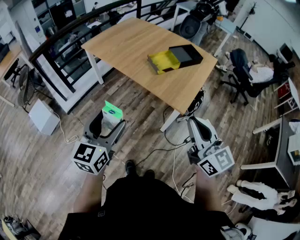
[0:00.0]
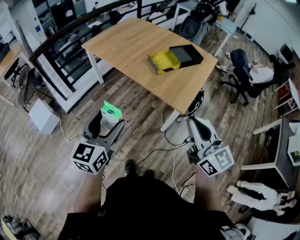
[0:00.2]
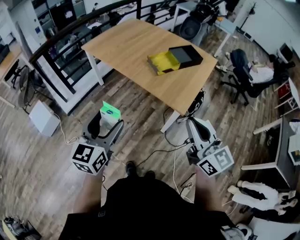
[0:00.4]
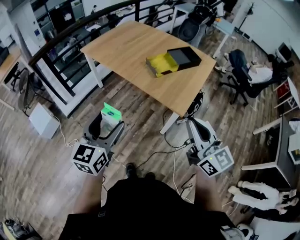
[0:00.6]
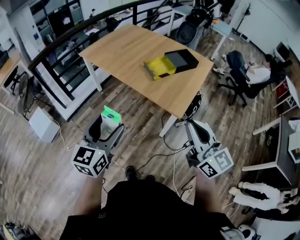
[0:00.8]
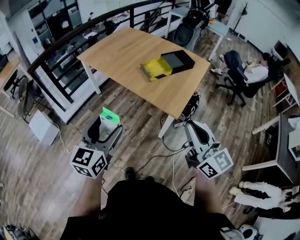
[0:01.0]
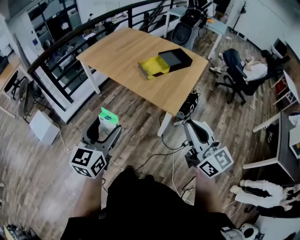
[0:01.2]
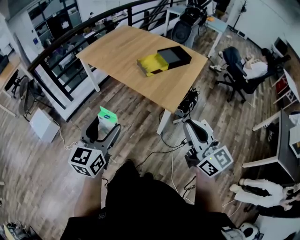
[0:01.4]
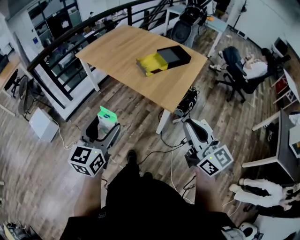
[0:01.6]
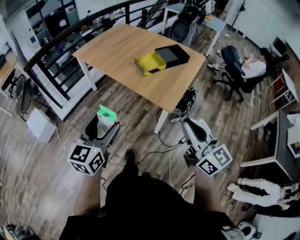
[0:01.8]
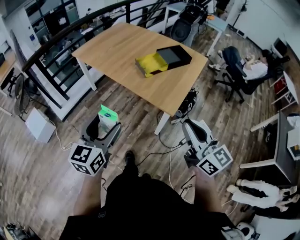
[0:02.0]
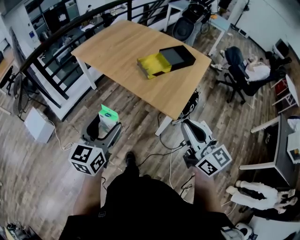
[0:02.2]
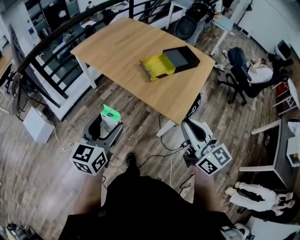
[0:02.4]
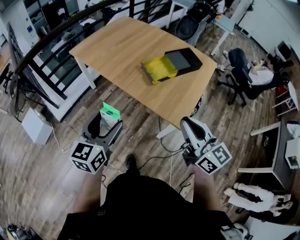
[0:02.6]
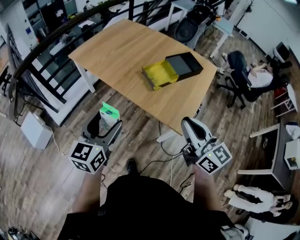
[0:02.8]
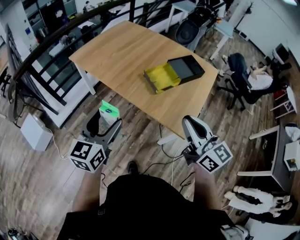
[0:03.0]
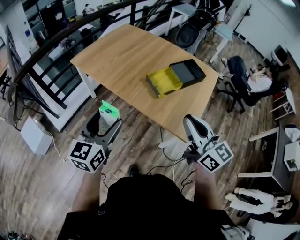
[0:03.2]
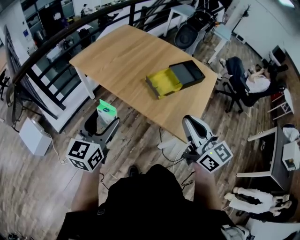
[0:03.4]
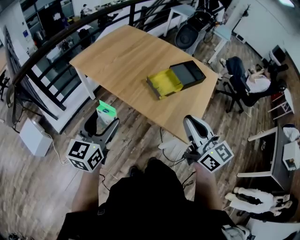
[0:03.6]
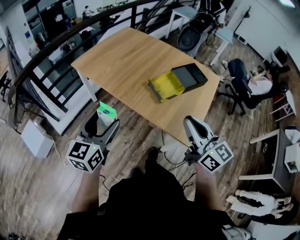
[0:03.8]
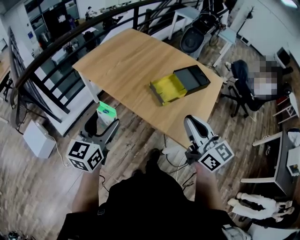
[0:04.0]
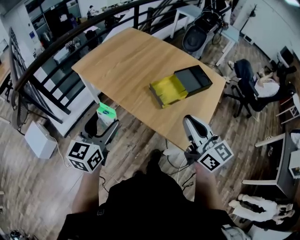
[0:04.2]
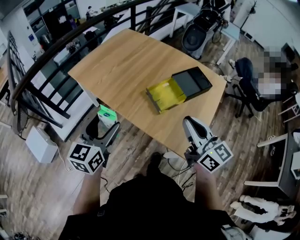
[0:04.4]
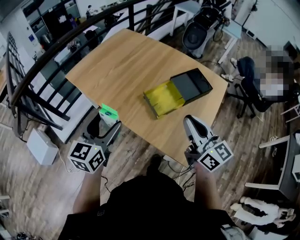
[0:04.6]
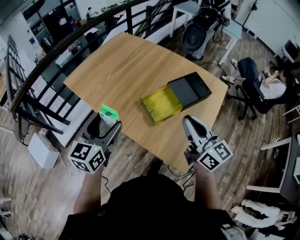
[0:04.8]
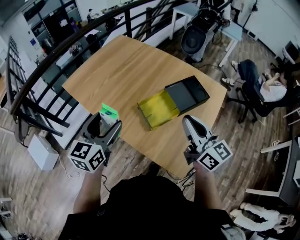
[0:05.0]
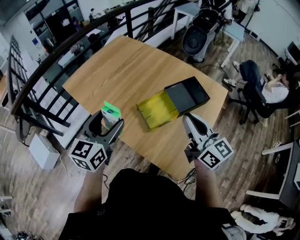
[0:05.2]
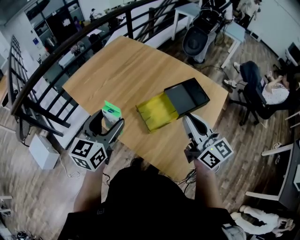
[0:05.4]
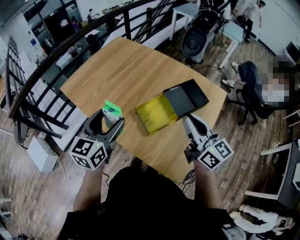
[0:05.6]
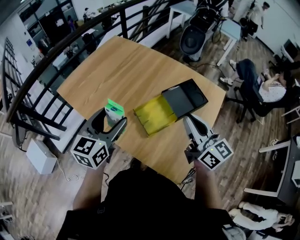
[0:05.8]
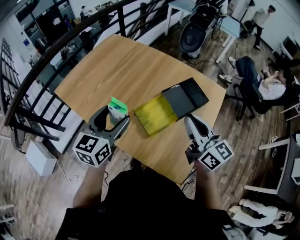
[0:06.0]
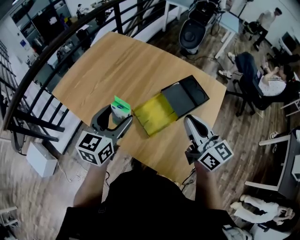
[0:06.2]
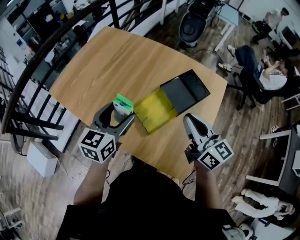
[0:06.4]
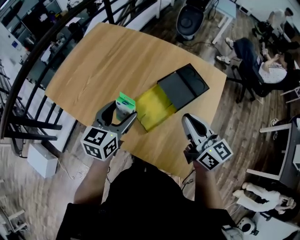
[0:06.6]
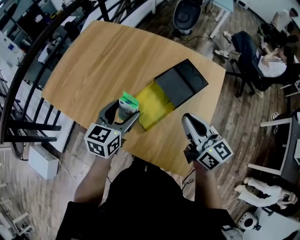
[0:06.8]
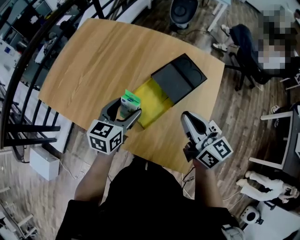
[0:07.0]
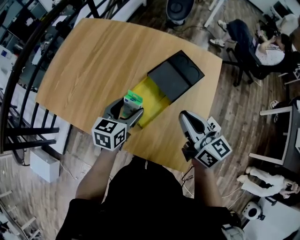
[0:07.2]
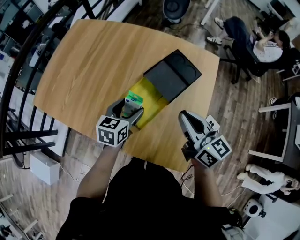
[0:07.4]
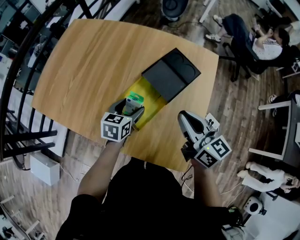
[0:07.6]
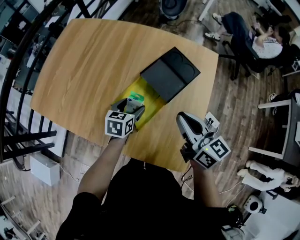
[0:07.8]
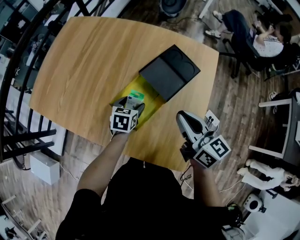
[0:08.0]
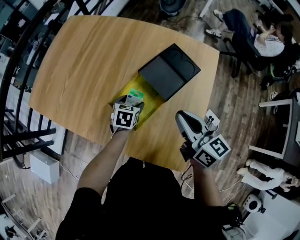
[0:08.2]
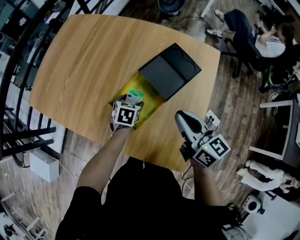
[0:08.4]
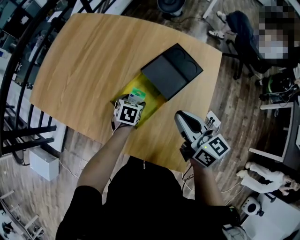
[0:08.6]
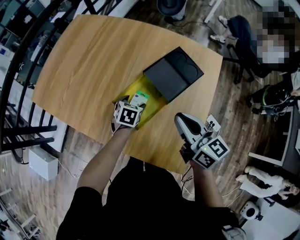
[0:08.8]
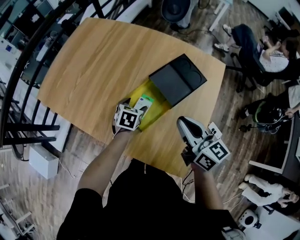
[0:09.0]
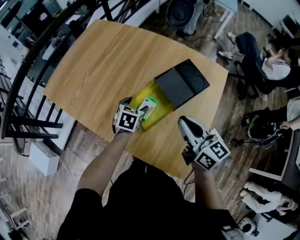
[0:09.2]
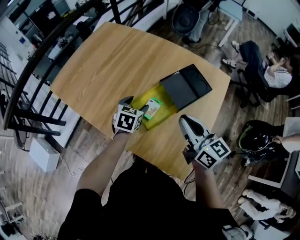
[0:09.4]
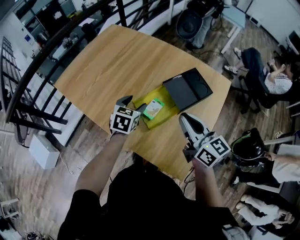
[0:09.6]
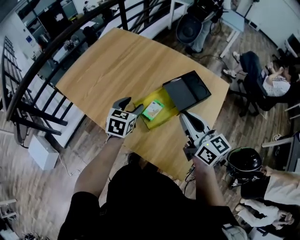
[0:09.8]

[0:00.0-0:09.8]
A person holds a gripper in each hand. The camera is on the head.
0.0 to 1.4 s: The right gripper travels to the right and backward by approximately 10 cm, while the left gripper moves approximately 5 cm.
1.4 to 2.8 s: The two grippers go approximately 20 cm forward.
2.8 to 4.2 s: Both grippers travel together forward, approximately 10 cm.
4.2 to 5.6 s: The grippers both shift forward and to the right by some 25 cm.
5.6 to 7.0 s: The left gripper is displaced downward, forward and to the right by about 20 cm, and rotates approximately 20 degrees. Meanwhile the right gripper heads downward, covering about 10 cm.
7.0 to 8.4 s: The left gripper shifts roughly 20 cm downward, and tips its fingers downward by some 30 degrees, while the right gripper ends up some 5 cm from where it was.
8.4 to 9.8 s: The right gripper goes approximately 10 cm upward and to the left, while the left gripper is displaced upward and to the left by some 20 cm, and swivels approximately 20 degrees.

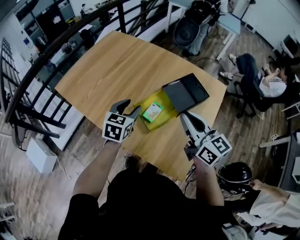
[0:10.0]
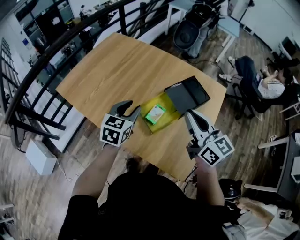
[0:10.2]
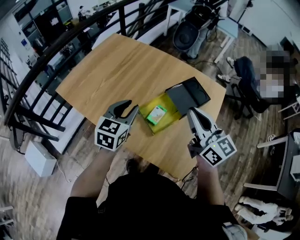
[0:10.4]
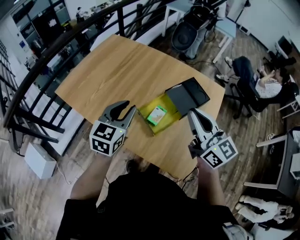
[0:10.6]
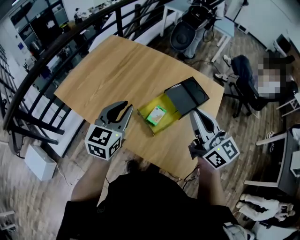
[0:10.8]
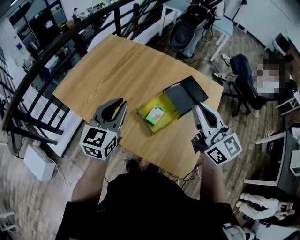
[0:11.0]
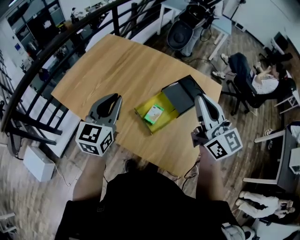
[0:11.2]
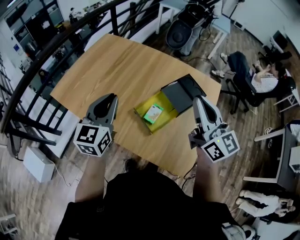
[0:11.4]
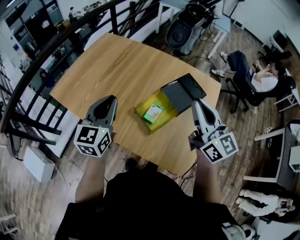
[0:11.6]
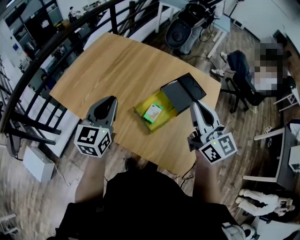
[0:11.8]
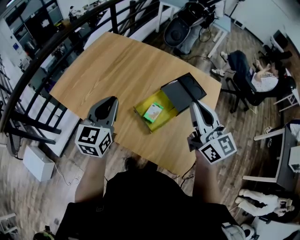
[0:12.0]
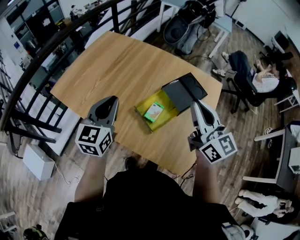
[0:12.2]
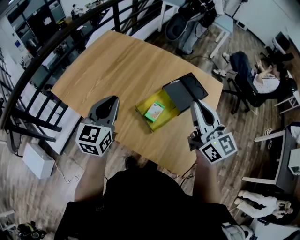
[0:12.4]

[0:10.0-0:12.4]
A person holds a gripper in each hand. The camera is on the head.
10.0 to 11.2 s: The left gripper shifts roughly 15 cm upward and to the left, swivels some 20 degrees, and closes. Meanwhile the right gripper travels upward by roughly 10 cm.
11.2 to 12.4 s: The grippers move only a little.

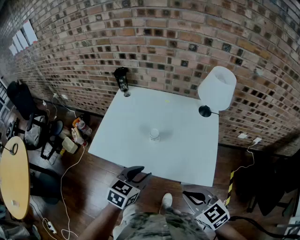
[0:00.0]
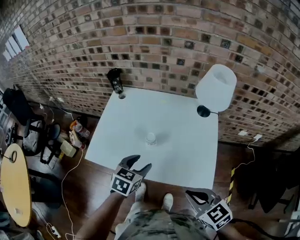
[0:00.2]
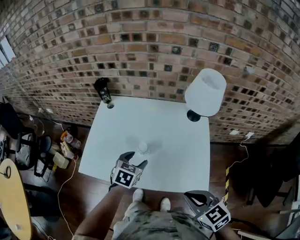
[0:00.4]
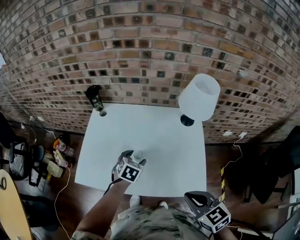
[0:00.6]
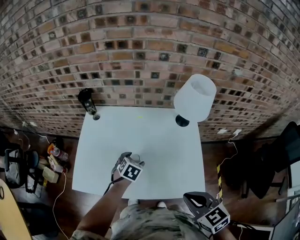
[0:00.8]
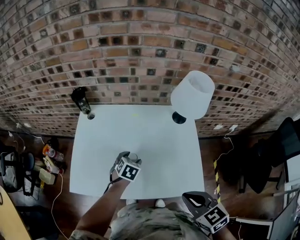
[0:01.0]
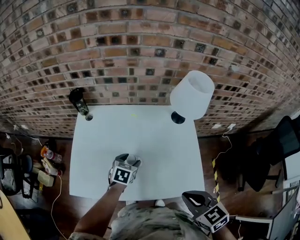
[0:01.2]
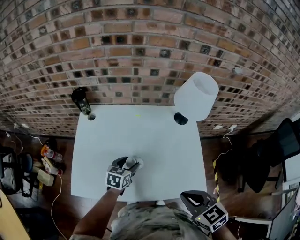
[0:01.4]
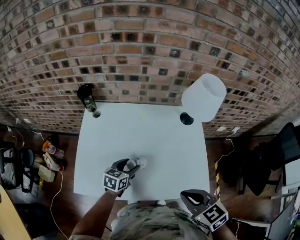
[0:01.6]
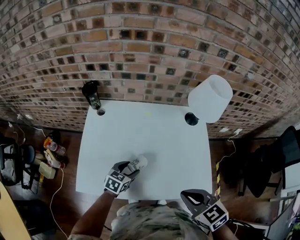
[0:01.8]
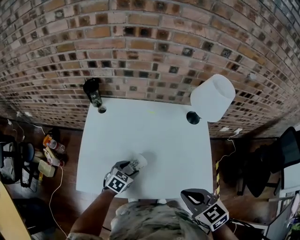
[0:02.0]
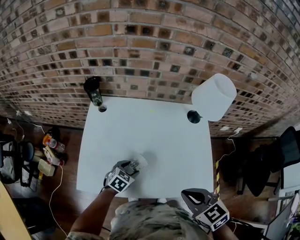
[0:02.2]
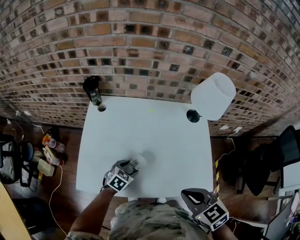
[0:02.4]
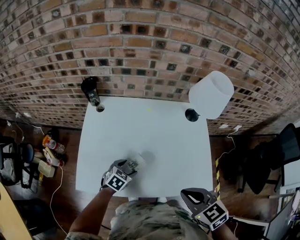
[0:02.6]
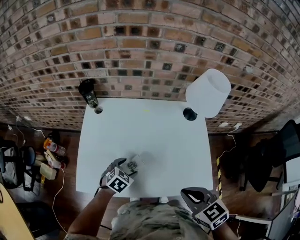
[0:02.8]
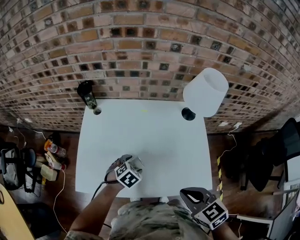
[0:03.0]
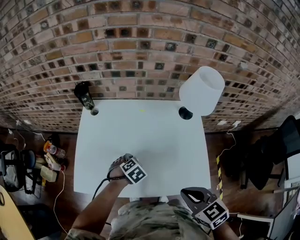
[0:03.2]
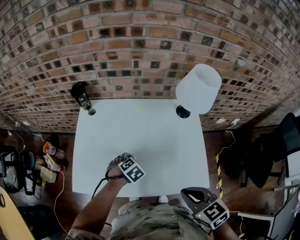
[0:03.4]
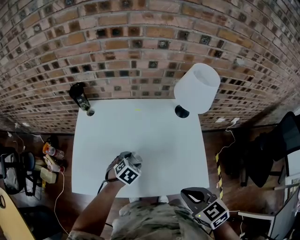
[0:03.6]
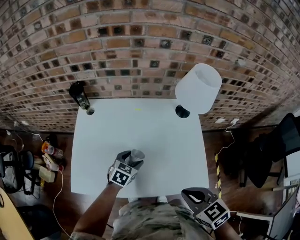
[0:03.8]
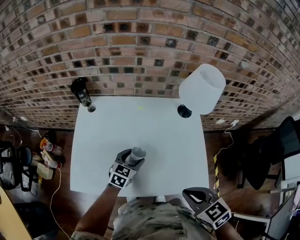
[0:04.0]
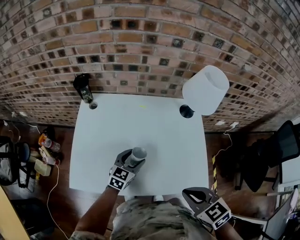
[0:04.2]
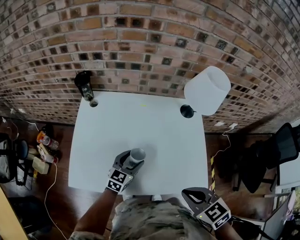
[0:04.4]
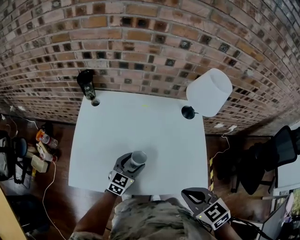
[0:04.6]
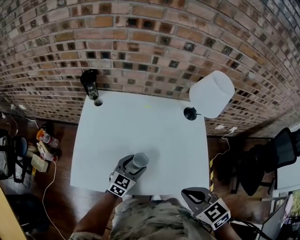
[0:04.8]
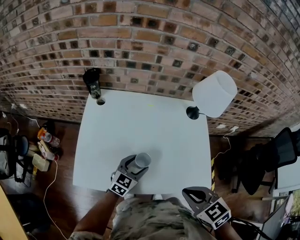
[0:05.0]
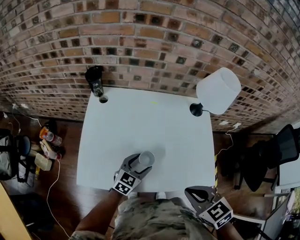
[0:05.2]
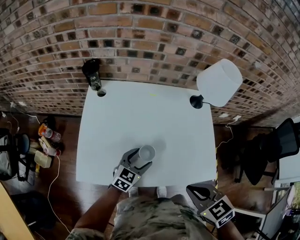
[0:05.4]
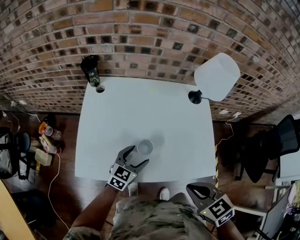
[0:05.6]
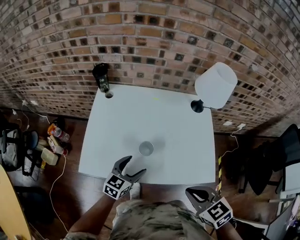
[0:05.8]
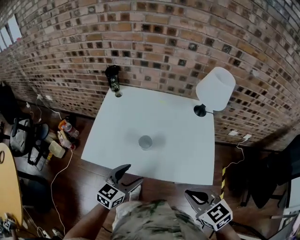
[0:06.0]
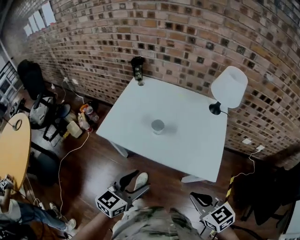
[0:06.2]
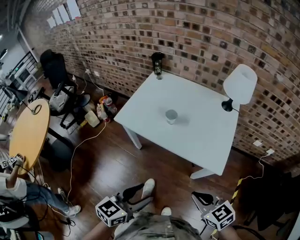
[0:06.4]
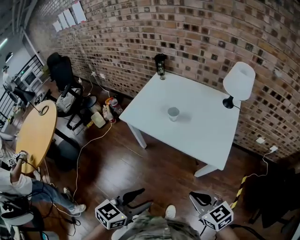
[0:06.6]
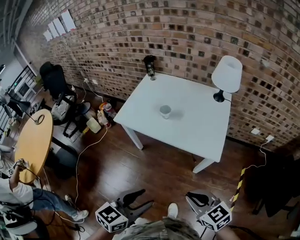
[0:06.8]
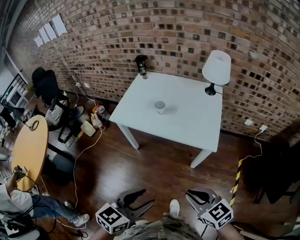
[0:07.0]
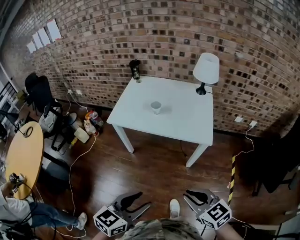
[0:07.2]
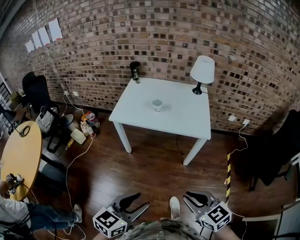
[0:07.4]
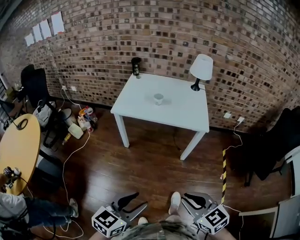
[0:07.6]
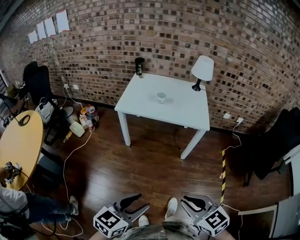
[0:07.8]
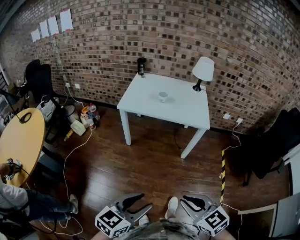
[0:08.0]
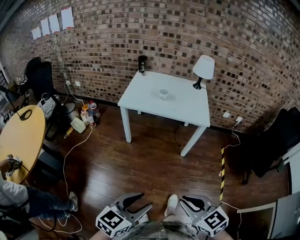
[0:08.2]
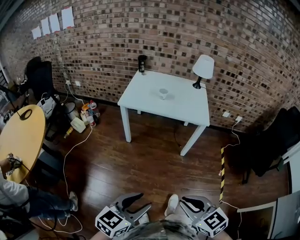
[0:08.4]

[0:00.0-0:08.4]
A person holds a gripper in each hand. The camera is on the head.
0.0 to 1.4 s: The right gripper shifts some 10 cm forward, and swivels some 20 degrees, while the left gripper goes some 25 cm forward and downward, and opens up.
1.4 to 2.8 s: The left gripper heads backward and to the left, covering roughly 5 cm, and changes its angle by approximately 30 degrees.
2.8 to 4.2 s: The left gripper shifts by some 10 cm, and swivels some 30 degrees.
4.2 to 5.6 s: The left gripper shifts about 5 cm backward, while the right gripper moves approximately 5 cm.
5.6 to 7.0 s: The right gripper ends up about 35 cm from where it was, and swivels some 30 degrees. Meanwhile the left gripper moves about 60 cm, and closes its fingers.
7.0 to 8.4 s: Both grippers travel together backward and to the left, approximately 35 cm.

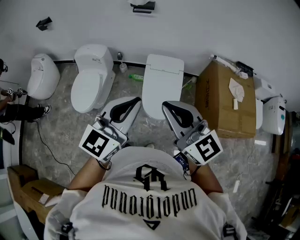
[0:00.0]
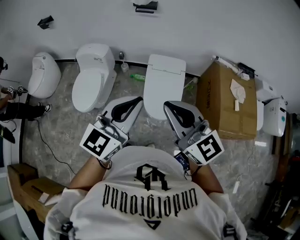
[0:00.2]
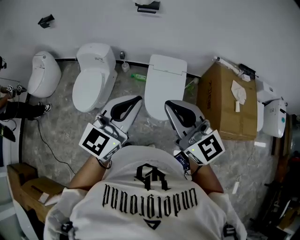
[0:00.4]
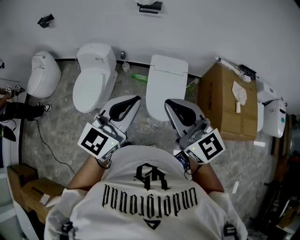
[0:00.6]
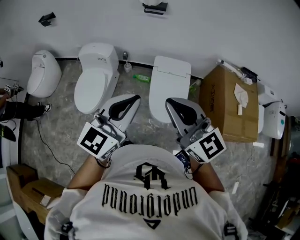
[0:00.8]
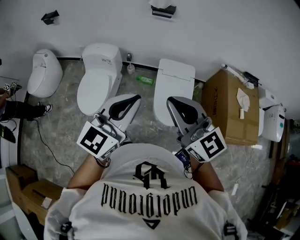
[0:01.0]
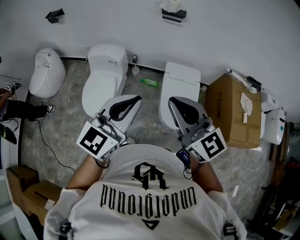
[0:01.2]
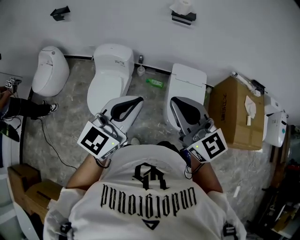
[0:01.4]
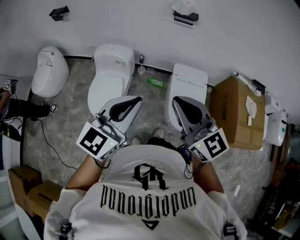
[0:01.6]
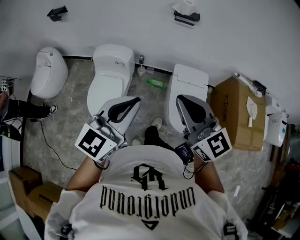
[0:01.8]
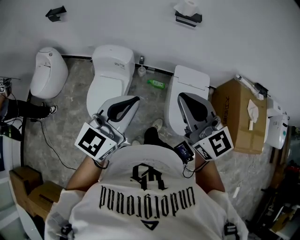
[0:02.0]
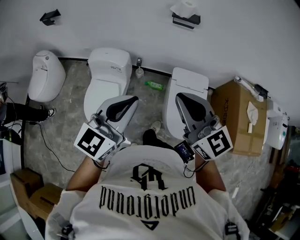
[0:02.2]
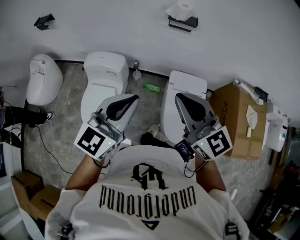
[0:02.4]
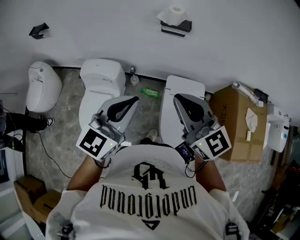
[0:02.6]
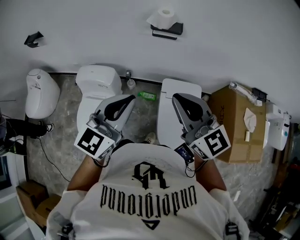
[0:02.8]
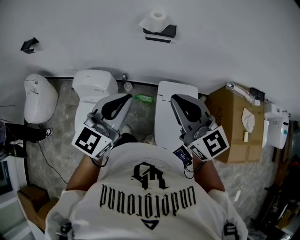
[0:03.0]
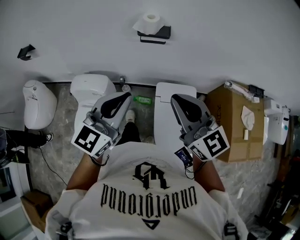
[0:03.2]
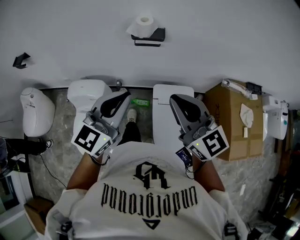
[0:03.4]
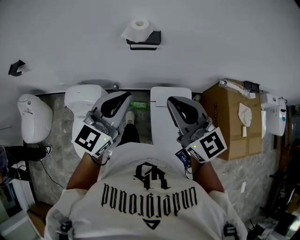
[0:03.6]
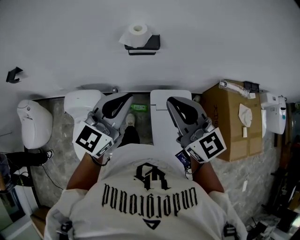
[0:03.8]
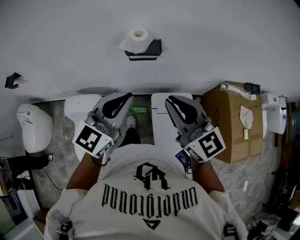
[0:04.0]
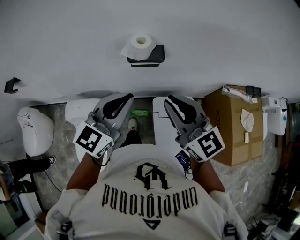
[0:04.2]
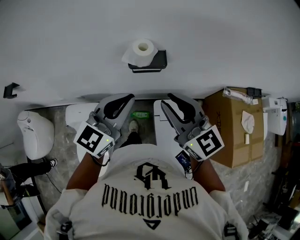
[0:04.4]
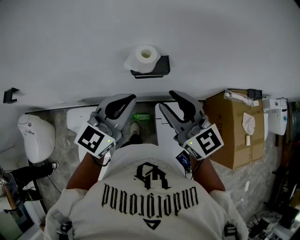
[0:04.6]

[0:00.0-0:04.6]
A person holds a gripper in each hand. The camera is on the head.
0.0 to 1.6 s: The grippers both shift to the left and forward by some 30 cm.
1.6 to 3.0 s: The grippers both shift forward and to the right by some 30 cm.
3.0 to 4.6 s: Both grippers move forward, approximately 25 cm.
